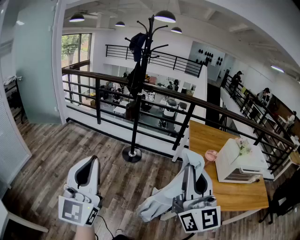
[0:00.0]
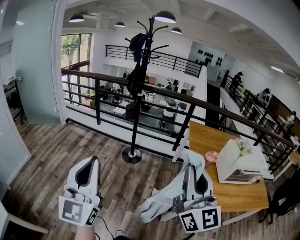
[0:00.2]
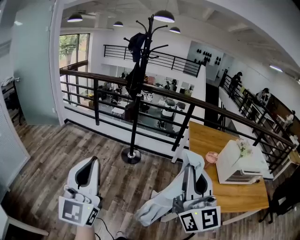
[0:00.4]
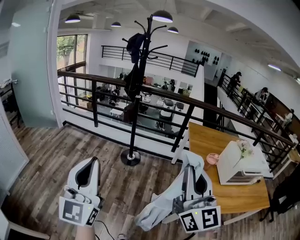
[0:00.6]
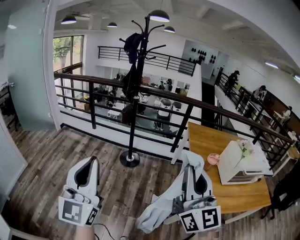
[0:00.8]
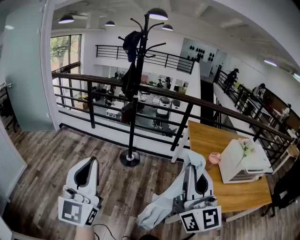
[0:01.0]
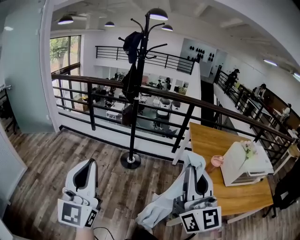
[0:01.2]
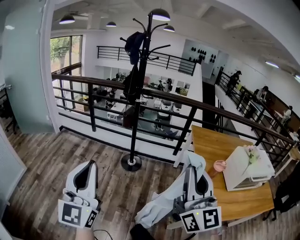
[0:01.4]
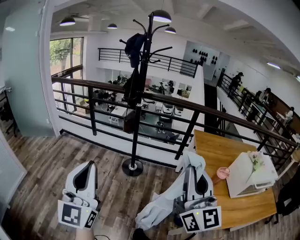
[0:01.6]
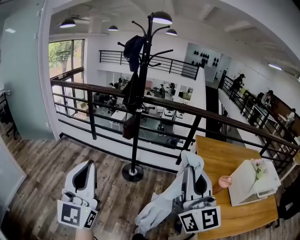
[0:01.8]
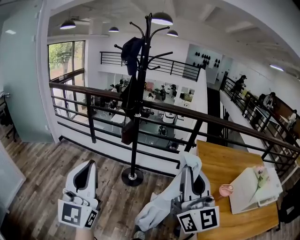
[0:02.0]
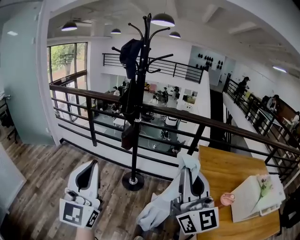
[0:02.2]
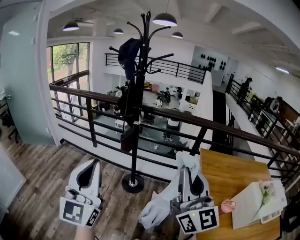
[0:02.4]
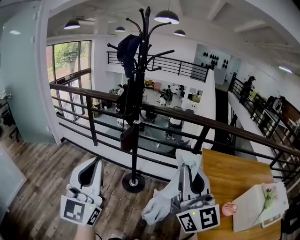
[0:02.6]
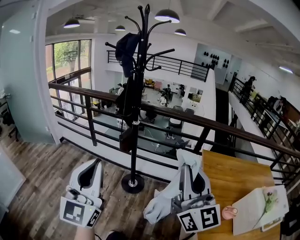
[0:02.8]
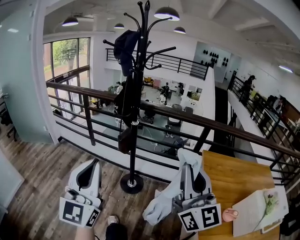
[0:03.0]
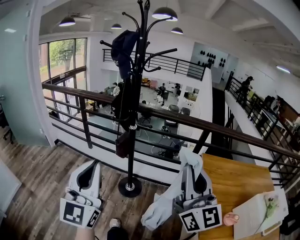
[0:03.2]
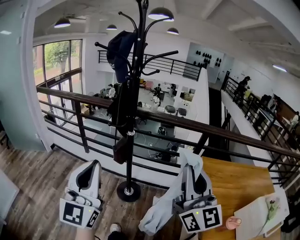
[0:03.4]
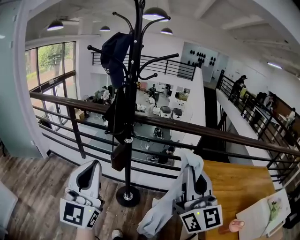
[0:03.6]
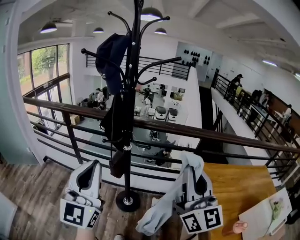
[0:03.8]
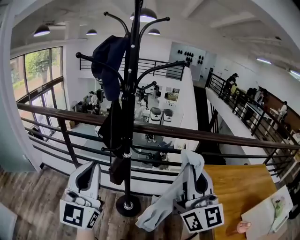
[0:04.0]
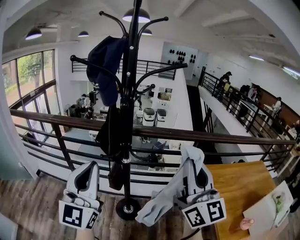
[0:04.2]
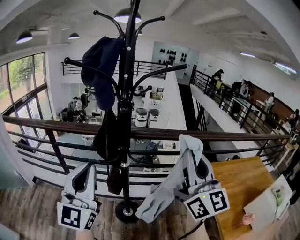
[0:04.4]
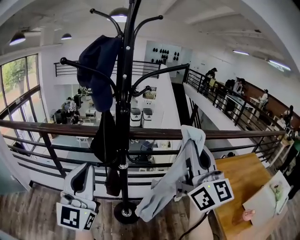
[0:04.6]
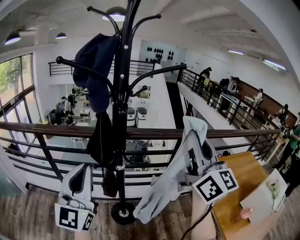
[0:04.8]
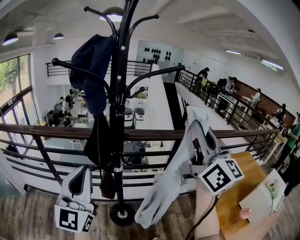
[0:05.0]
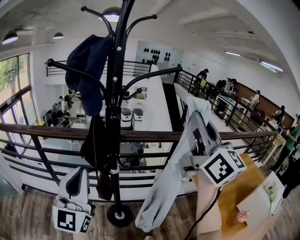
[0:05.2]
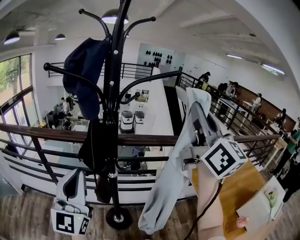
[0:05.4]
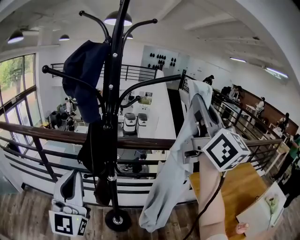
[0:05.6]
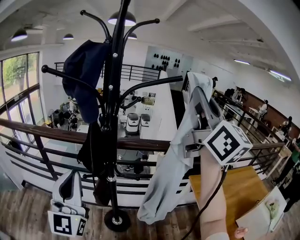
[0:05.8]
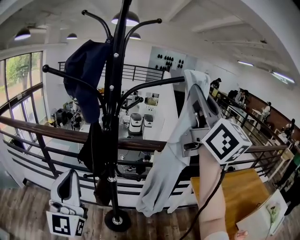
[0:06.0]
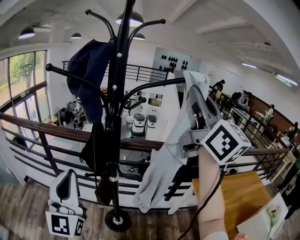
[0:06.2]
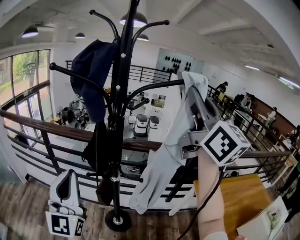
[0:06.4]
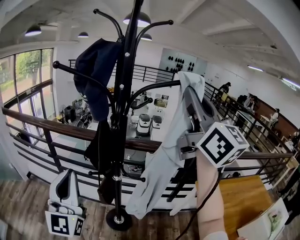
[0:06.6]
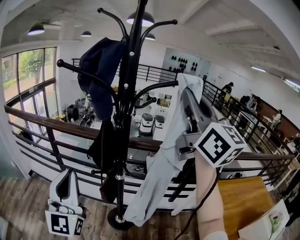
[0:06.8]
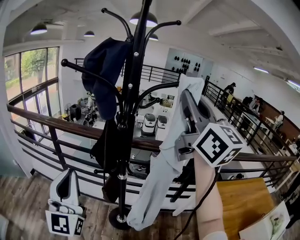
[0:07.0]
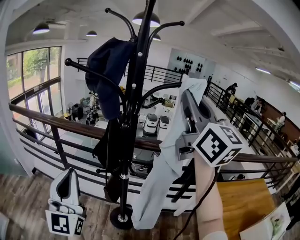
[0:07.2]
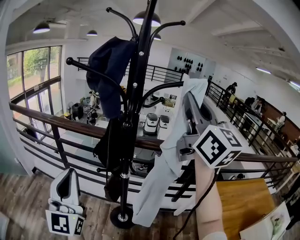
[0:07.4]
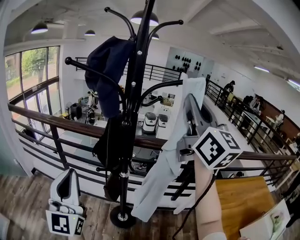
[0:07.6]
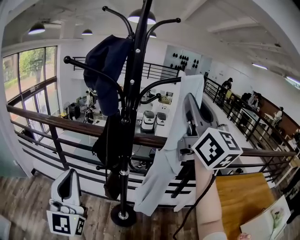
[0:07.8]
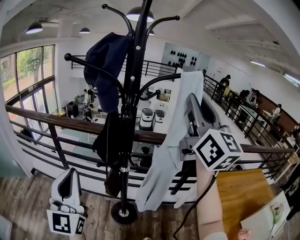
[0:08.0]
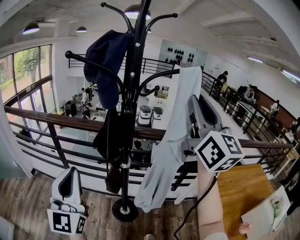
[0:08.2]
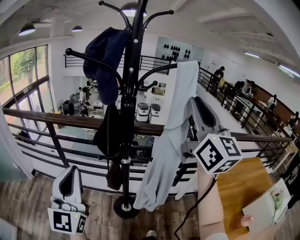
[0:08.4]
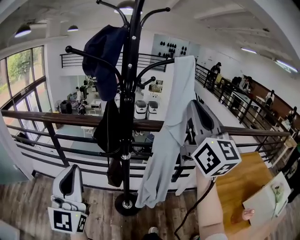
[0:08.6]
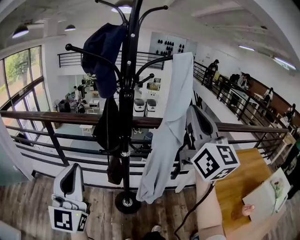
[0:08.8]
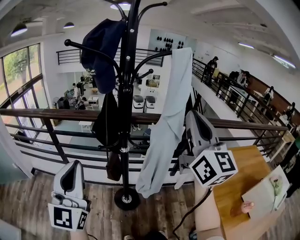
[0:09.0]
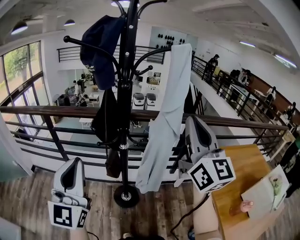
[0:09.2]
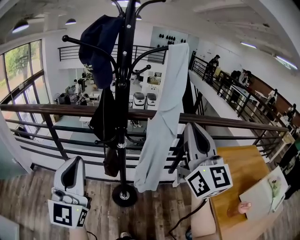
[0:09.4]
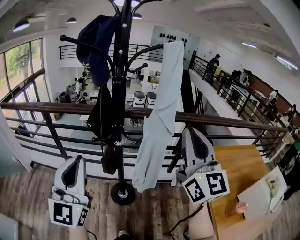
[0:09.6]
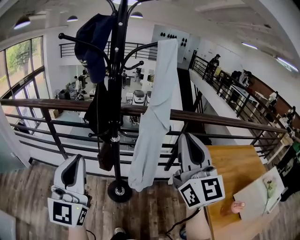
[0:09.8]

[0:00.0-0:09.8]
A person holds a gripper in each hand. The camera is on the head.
0:00.0 to 0:01.4: The left gripper heads forward and to the left, covering about 15 cm. Meanwhile the right gripper shifts roughly 15 cm forward.
0:01.4 to 0:02.8: Both grippers move forward, roughly 30 cm.
0:02.8 to 0:04.2: Both grippers move forward, roughly 30 cm.
0:04.2 to 0:05.6: The left gripper goes some 10 cm forward. Meanwhile the right gripper goes roughly 20 cm upward and forward.
0:05.6 to 0:07.0: The right gripper goes roughly 10 cm to the left and forward.
0:07.0 to 0:08.4: The right gripper travels backward and downward by approximately 10 cm.
0:08.4 to 0:09.8: The right gripper goes some 20 cm backward and downward; the left gripper travels to the right and backward by some 10 cm.

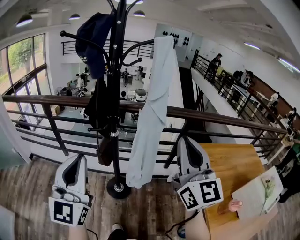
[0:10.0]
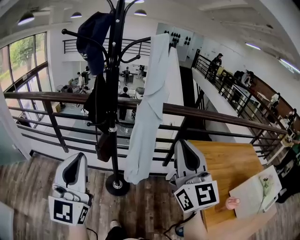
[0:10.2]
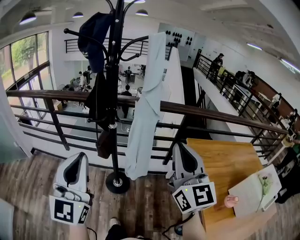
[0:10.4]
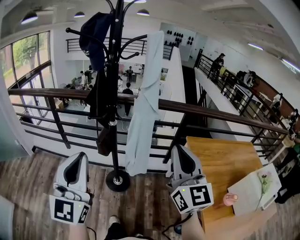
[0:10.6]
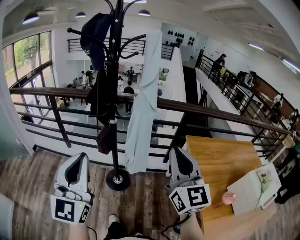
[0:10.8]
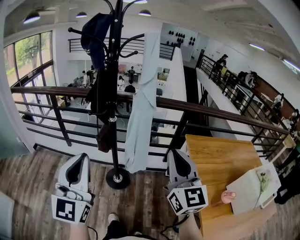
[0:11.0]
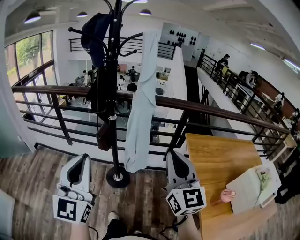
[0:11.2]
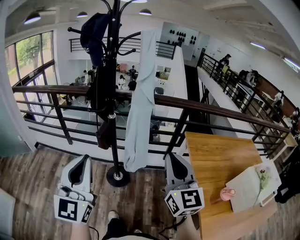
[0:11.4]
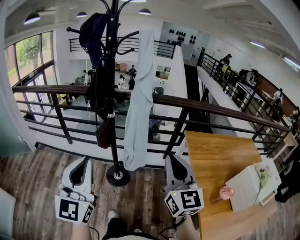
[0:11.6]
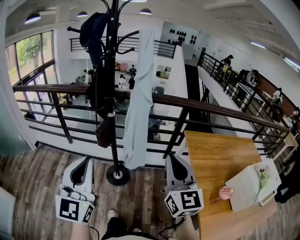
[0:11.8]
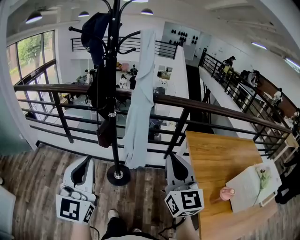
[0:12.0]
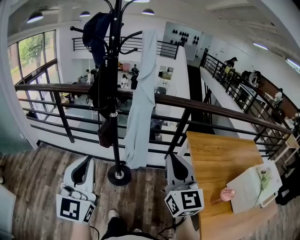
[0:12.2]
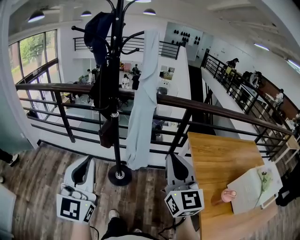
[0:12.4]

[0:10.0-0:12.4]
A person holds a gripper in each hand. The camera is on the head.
0:10.0 to 0:11.2: The right gripper shifts approximately 15 cm backward and downward. Meanwhile the left gripper heads backward and to the right, covering about 10 cm.
0:11.2 to 0:12.4: The grippers move only a little.

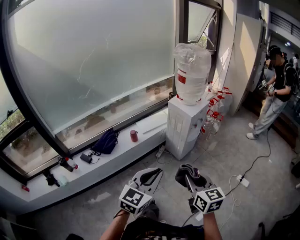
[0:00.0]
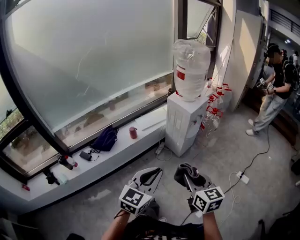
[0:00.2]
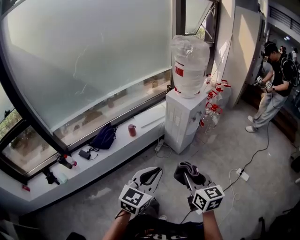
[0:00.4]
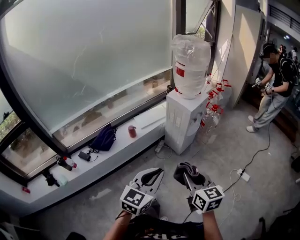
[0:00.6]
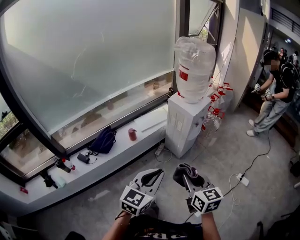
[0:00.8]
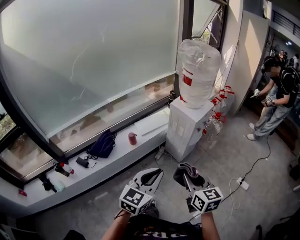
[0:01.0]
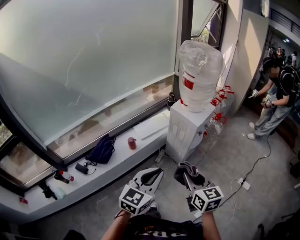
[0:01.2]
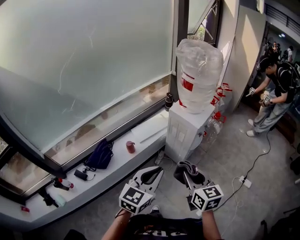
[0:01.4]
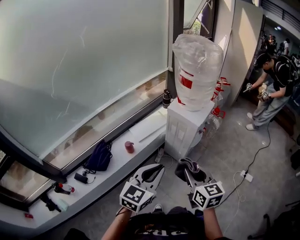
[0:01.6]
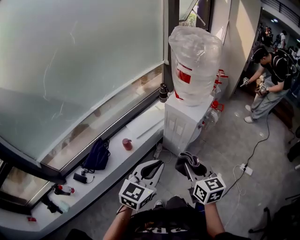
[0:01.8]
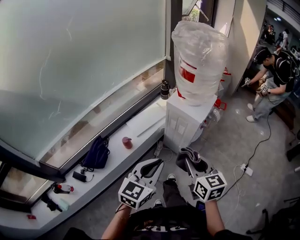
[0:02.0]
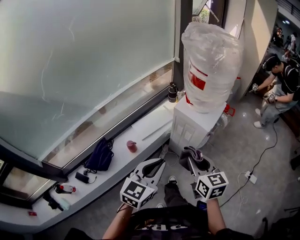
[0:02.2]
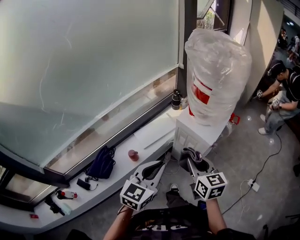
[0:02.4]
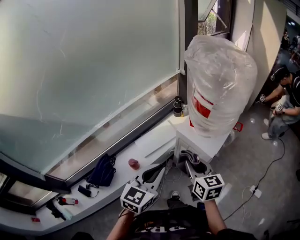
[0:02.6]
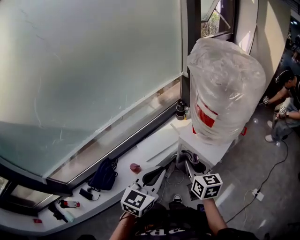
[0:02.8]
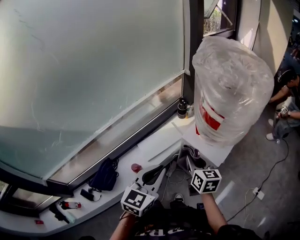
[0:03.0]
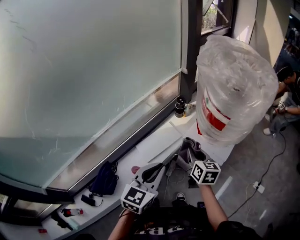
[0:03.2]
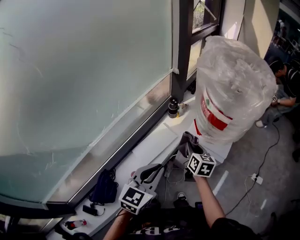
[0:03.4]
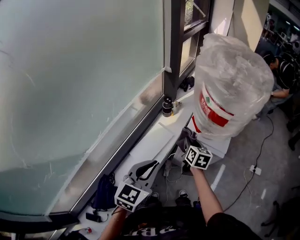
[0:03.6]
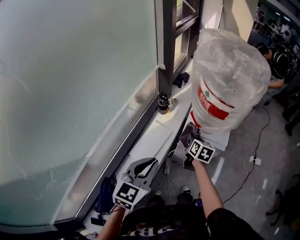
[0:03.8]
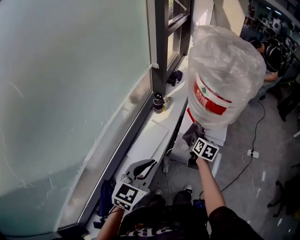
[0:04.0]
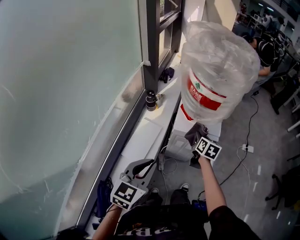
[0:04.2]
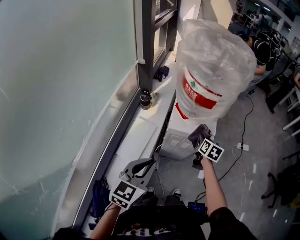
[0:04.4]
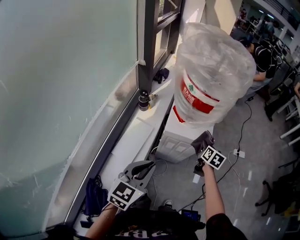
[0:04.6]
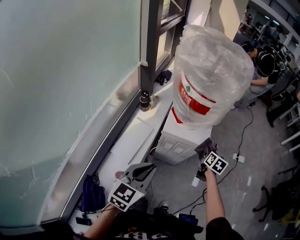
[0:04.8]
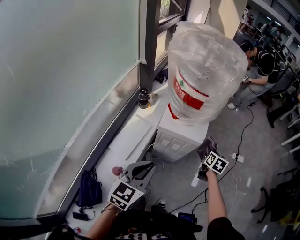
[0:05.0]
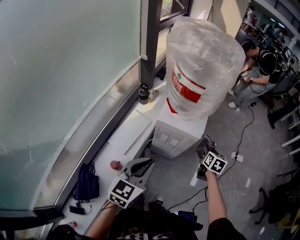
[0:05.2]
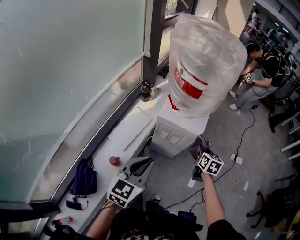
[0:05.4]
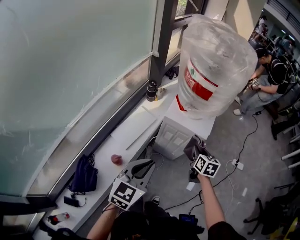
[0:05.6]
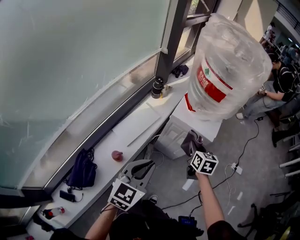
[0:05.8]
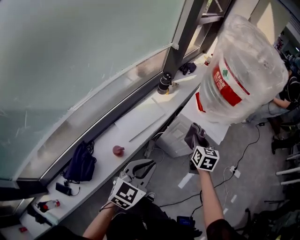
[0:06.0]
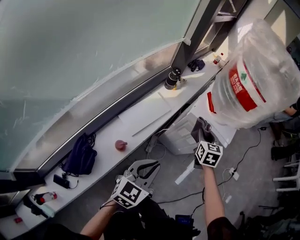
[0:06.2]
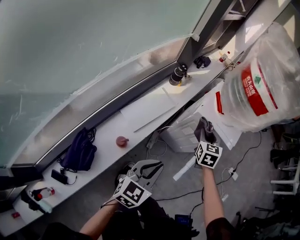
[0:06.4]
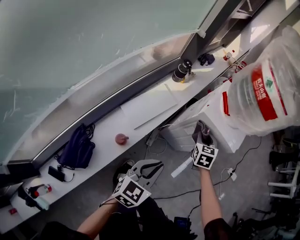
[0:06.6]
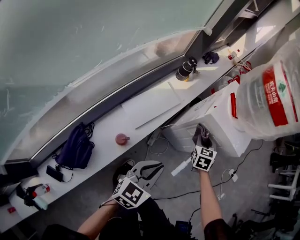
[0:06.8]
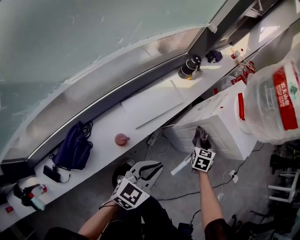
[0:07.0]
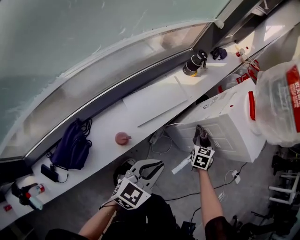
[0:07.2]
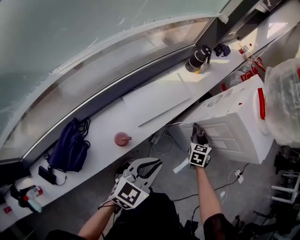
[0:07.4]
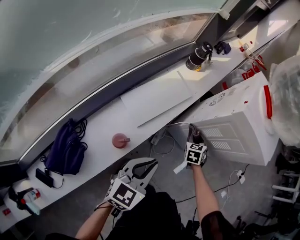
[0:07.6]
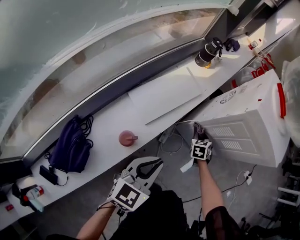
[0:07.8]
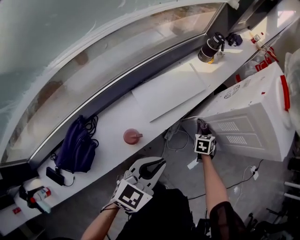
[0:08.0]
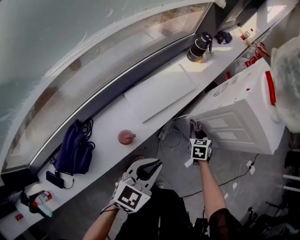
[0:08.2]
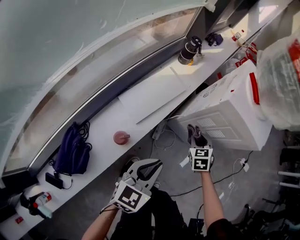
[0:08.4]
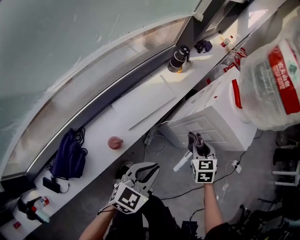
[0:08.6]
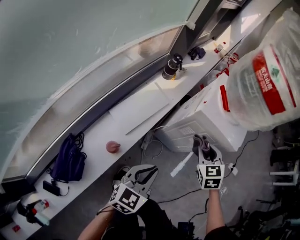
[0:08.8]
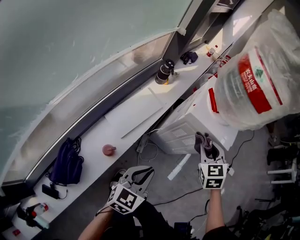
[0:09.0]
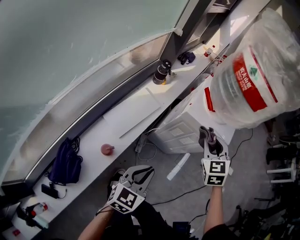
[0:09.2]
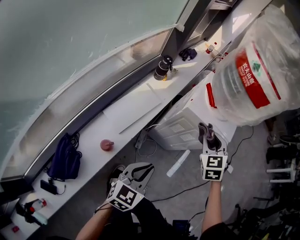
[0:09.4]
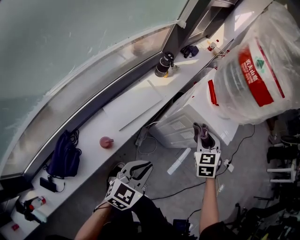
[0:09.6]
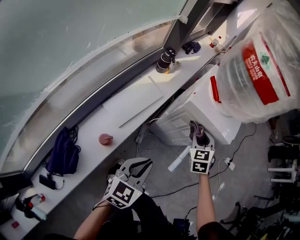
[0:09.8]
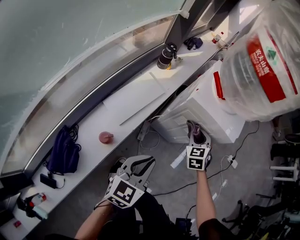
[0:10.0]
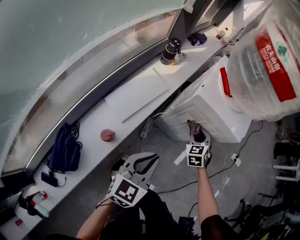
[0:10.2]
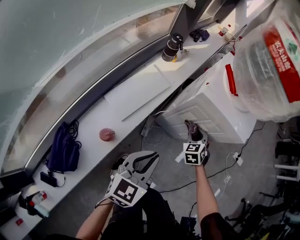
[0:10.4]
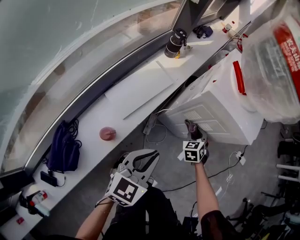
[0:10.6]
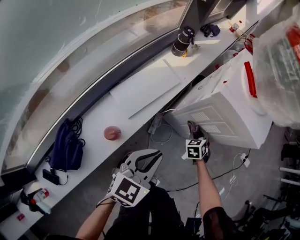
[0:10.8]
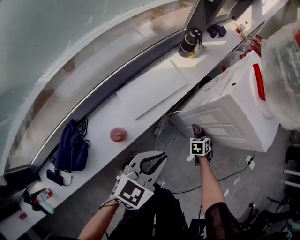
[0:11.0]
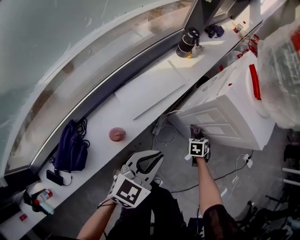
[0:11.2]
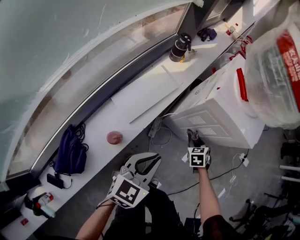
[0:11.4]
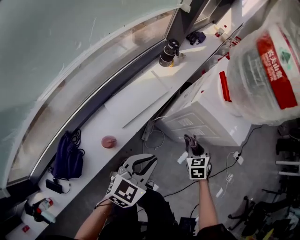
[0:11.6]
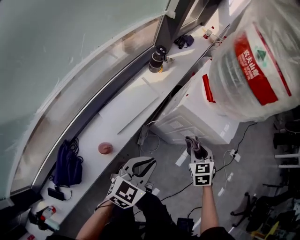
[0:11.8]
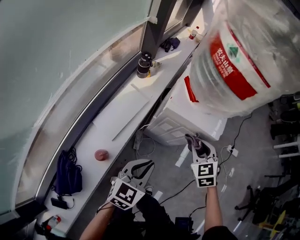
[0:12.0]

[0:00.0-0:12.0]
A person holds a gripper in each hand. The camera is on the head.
0:00.0 to 0:01.6: Both grippers move forward, roughly 25 cm.
0:01.6 to 0:03.0: The two grippers go about 35 cm forward.
0:03.0 to 0:04.4: The right gripper shifts by about 15 cm, and rotates about 50 degrees, while the left gripper moves approximately 10 cm, and turns by about 30 degrees.
0:04.4 to 0:06.0: The left gripper is displaced downward, backward and to the right by about 15 cm. Meanwhile the right gripper heads backward, covering roughly 5 cm, goes to the right and returns, some 15 cm each way, and rotates approximately 40 degrees.
0:06.0 to 0:07.6: The two grippers go about 30 cm downward. The right gripper rotates roughly 30 degrees.
0:07.6 to 0:09.0: The right gripper moves upward, about 35 cm. The left gripper goes approximately 15 cm upward and to the right.
0:09.0 to 0:10.4: The right gripper travels downward by some 25 cm.
0:10.4 to 0:12.0: The left gripper ends up about 5 cm from where it was. The right gripper heads upward, covering roughly 20 cm.
